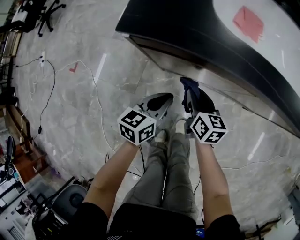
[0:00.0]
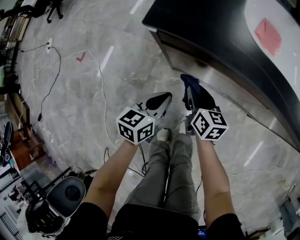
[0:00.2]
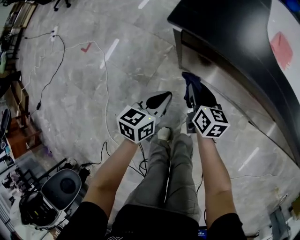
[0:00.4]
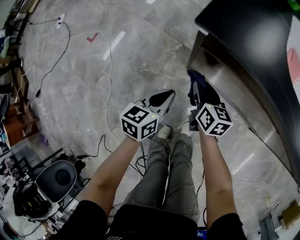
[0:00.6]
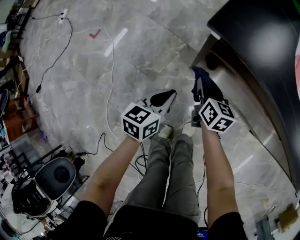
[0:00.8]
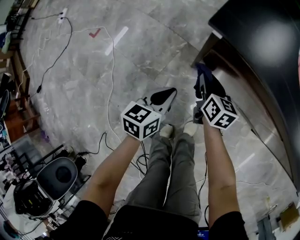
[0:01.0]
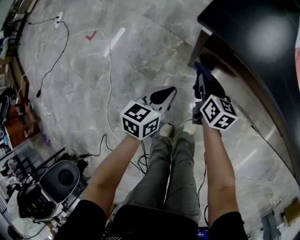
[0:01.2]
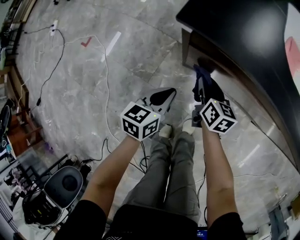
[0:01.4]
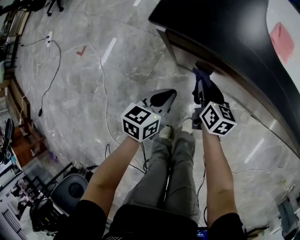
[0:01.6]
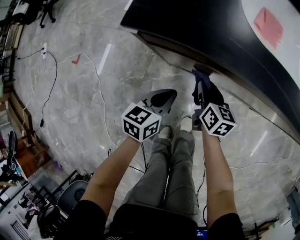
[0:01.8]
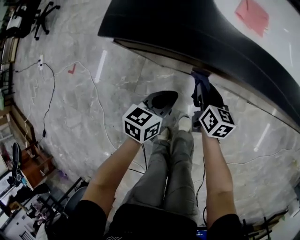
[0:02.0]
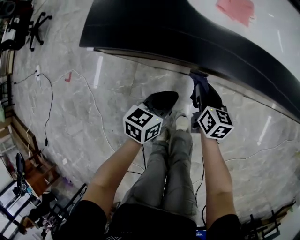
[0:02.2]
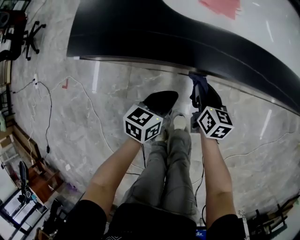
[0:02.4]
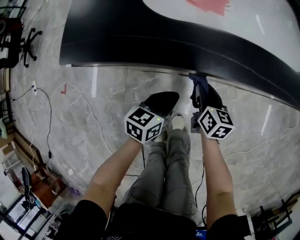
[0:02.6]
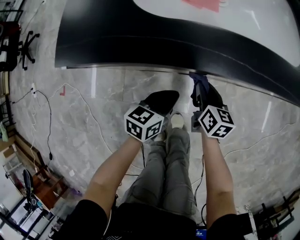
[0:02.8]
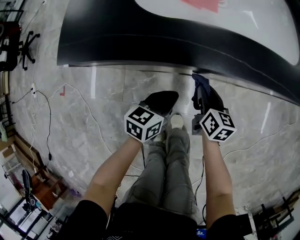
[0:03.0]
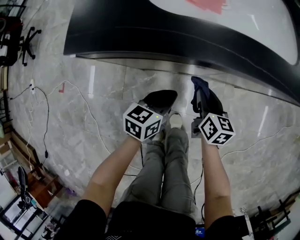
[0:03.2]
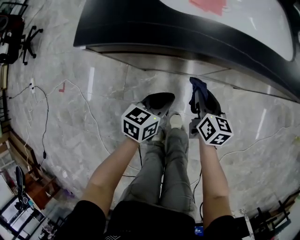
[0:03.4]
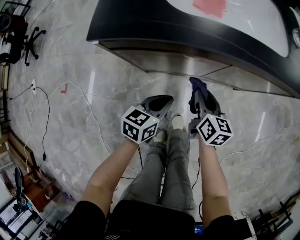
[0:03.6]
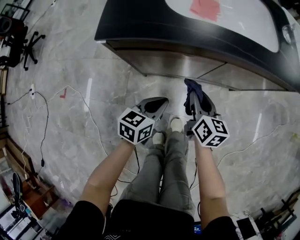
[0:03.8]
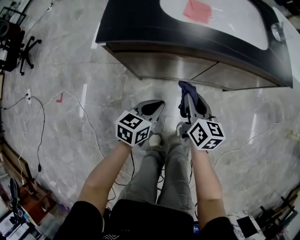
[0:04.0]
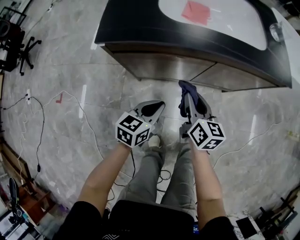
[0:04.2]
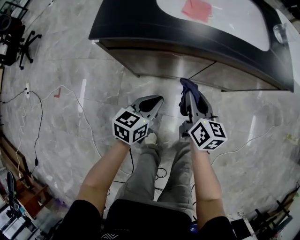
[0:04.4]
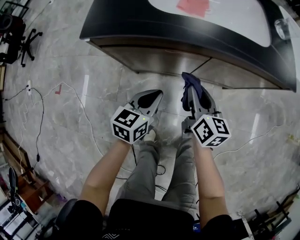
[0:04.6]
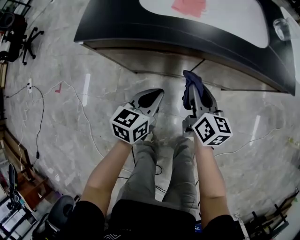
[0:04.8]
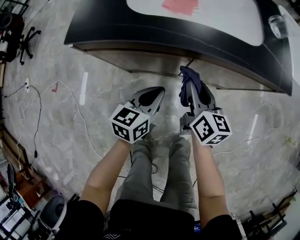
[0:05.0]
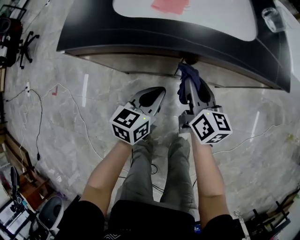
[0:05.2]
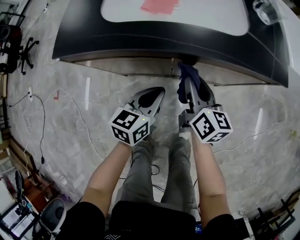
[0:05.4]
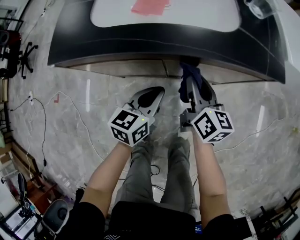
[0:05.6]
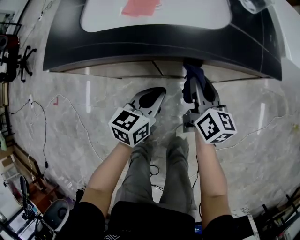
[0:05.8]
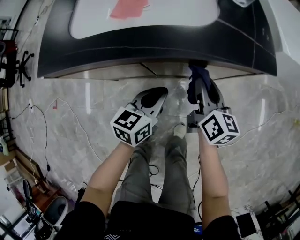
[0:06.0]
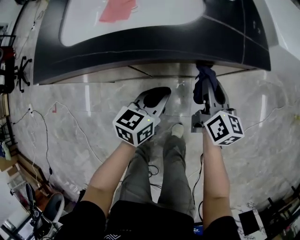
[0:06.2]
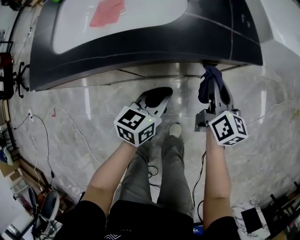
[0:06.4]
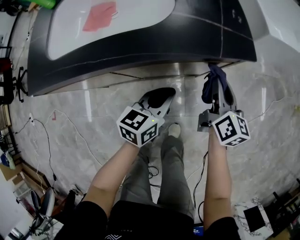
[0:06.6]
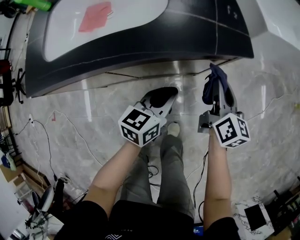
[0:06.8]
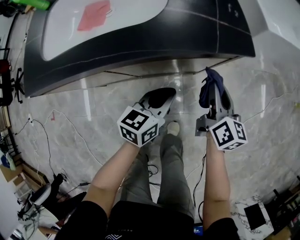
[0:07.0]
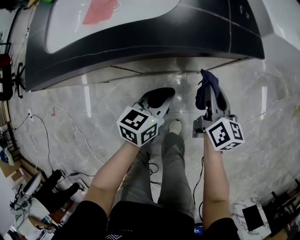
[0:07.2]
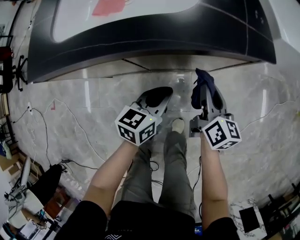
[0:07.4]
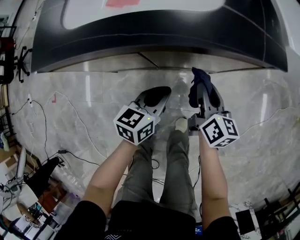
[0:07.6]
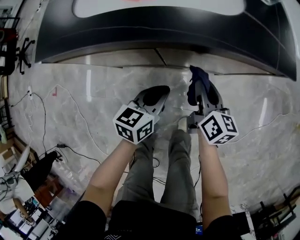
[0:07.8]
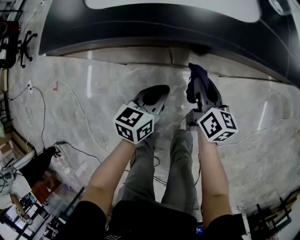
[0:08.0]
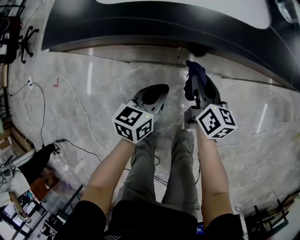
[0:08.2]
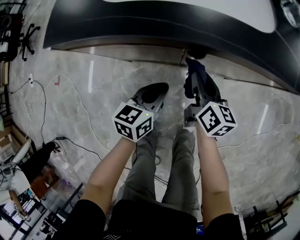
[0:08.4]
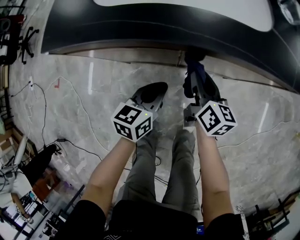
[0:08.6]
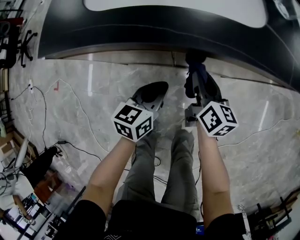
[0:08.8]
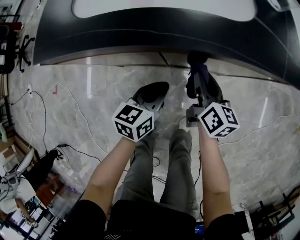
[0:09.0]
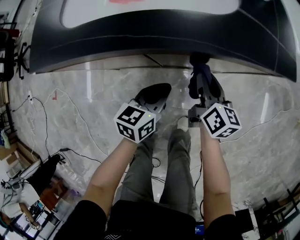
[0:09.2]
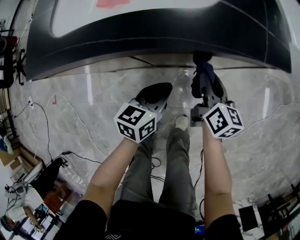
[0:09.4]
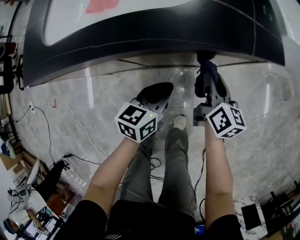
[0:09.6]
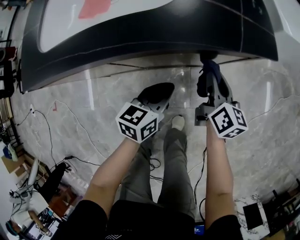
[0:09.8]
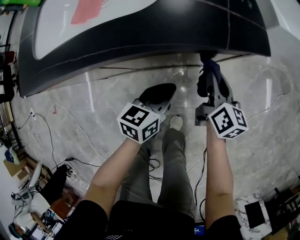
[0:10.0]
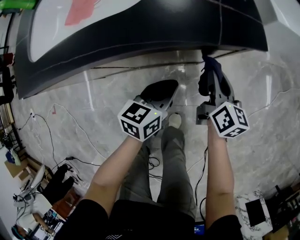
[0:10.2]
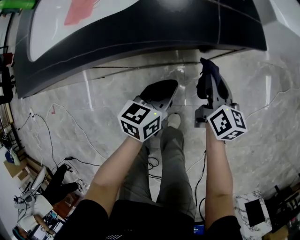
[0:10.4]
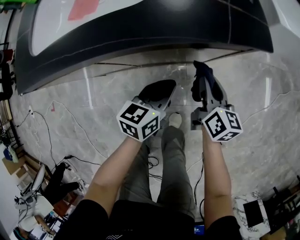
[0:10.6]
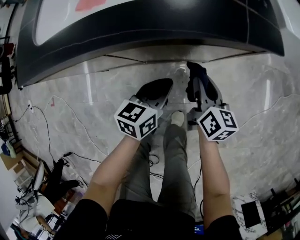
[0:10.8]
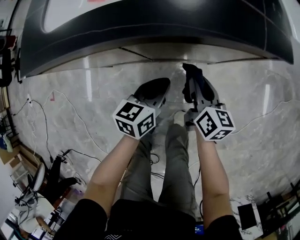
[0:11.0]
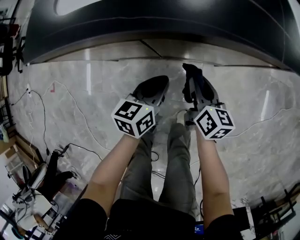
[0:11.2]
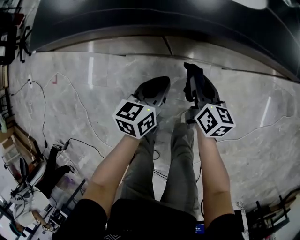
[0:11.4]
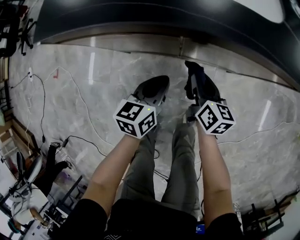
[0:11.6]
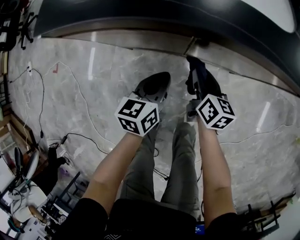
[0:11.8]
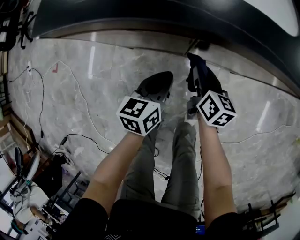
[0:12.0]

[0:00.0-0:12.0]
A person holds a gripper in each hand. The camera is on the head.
0:00.0 to 0:01.6: Both grippers travel together to the left, some 5 cm.
0:01.6 to 0:03.0: The grippers both shift to the right by approximately 20 cm. The left gripper swivels about 20 degrees; the right gripper turns by approximately 20 degrees.
0:03.0 to 0:04.4: The right gripper shifts roughly 15 cm upward and backward. The left gripper travels backward and upward by some 10 cm.
0:04.4 to 0:06.0: Both grippers travel together to the right and forward, roughly 25 cm.
0:06.0 to 0:07.6: The right gripper travels downward by roughly 5 cm, and moves some 15 cm to the right and comes back. Meanwhile the left gripper goes to the right and returns, approximately 10 cm each way.
0:07.6 to 0:09.0: Both grippers travel together to the left, some 5 cm.
0:09.0 to 0:10.4: The grippers both shift to the right by roughly 20 cm.
0:10.4 to 0:12.0: The left gripper shifts by roughly 25 cm, and rotates about 30 degrees; the right gripper moves roughly 30 cm, and changes its angle by roughly 20 degrees.

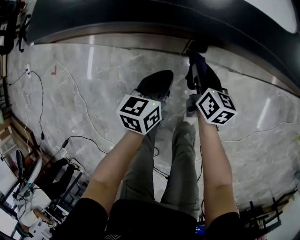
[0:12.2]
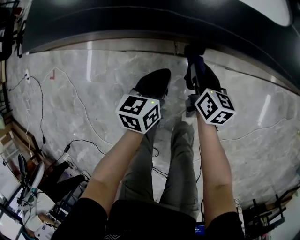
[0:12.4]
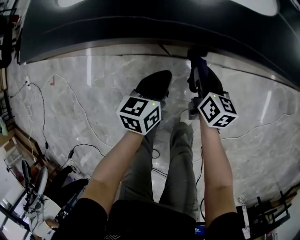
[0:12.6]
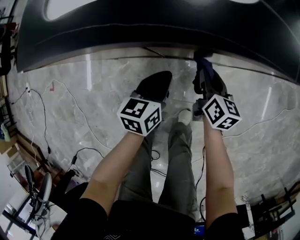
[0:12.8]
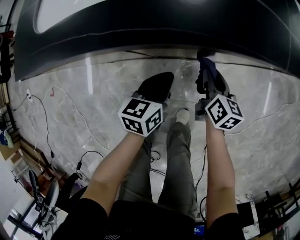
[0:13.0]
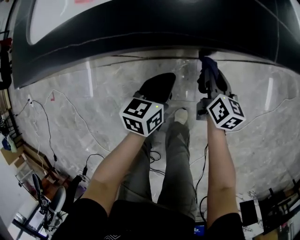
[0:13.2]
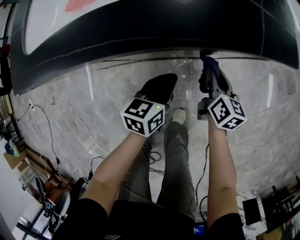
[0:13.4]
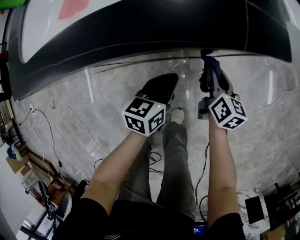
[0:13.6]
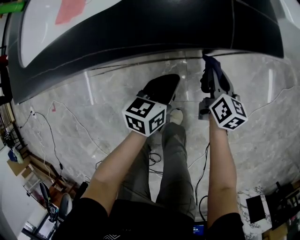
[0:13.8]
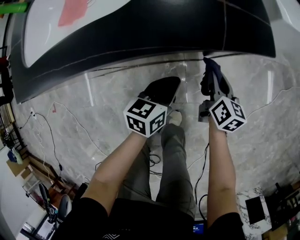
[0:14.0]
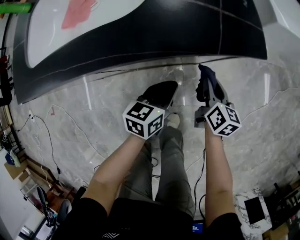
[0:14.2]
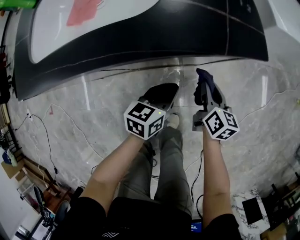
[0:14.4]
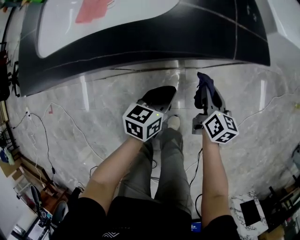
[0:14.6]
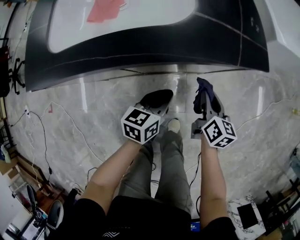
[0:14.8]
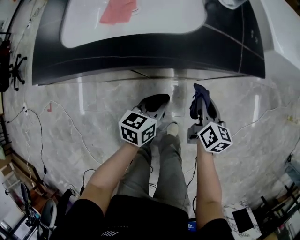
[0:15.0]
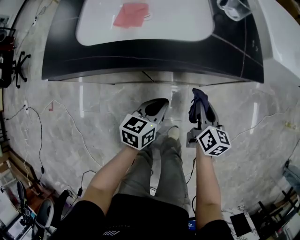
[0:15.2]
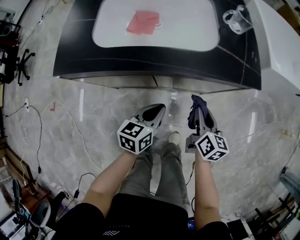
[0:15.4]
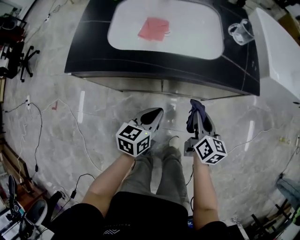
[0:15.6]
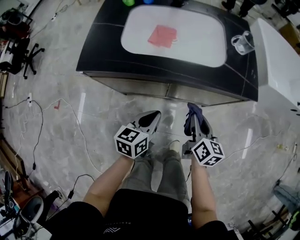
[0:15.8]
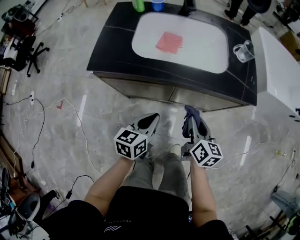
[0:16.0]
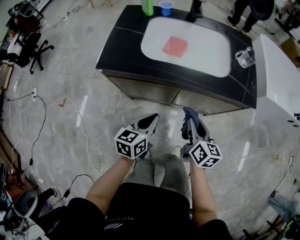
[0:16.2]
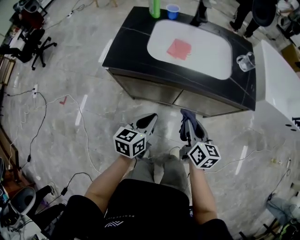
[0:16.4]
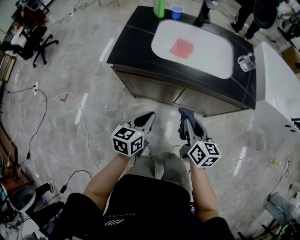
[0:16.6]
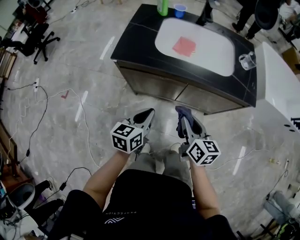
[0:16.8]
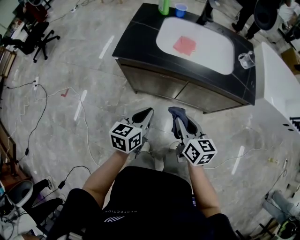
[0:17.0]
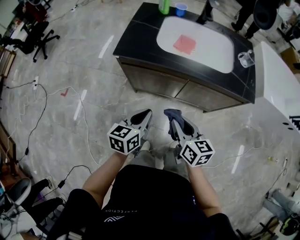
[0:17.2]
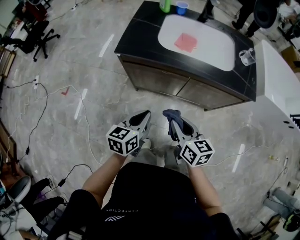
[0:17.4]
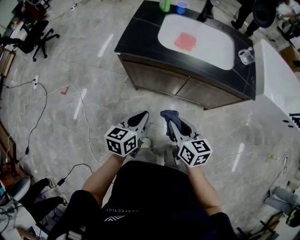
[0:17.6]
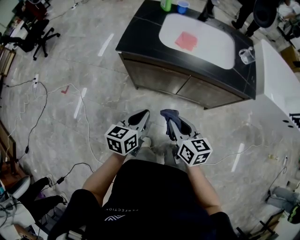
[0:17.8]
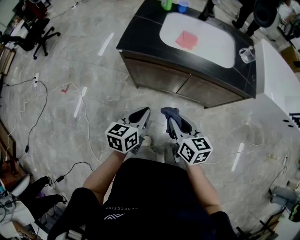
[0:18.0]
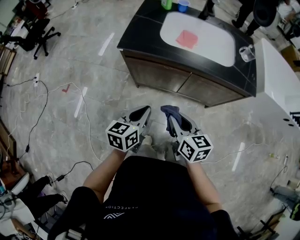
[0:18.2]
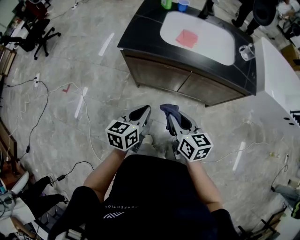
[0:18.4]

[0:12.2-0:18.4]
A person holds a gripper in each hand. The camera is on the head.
0:12.2 to 0:13.8: The two grippers go approximately 25 cm to the right. The left gripper swivels about 20 degrees; the right gripper changes its angle by some 20 degrees.
0:13.8 to 0:15.4: The left gripper shifts approximately 20 cm to the left, upward and backward. Meanwhile the right gripper travels upward, to the left and backward by some 25 cm.
0:15.4 to 0:16.8: Both grippers move to the left, upward and backward, some 25 cm. The right gripper changes its angle by roughly 20 degrees.
0:16.8 to 0:18.4: The left gripper goes about 5 cm backward. Meanwhile the right gripper travels to the left and backward by some 10 cm.

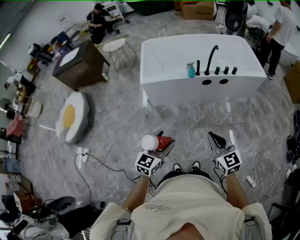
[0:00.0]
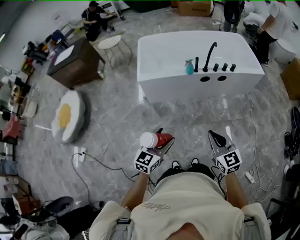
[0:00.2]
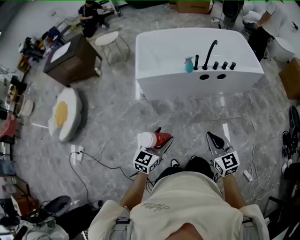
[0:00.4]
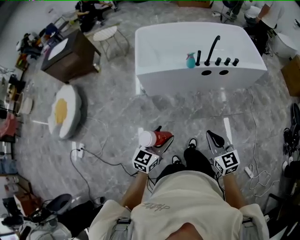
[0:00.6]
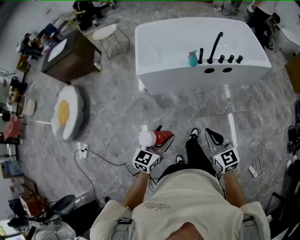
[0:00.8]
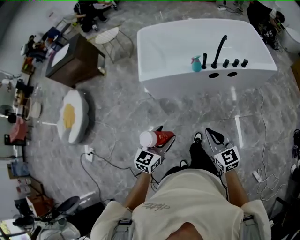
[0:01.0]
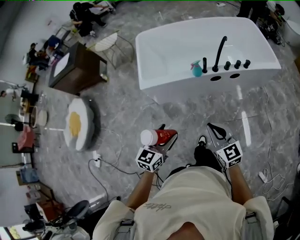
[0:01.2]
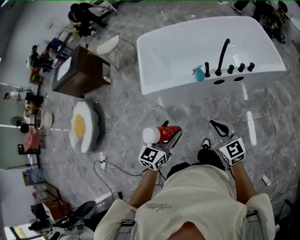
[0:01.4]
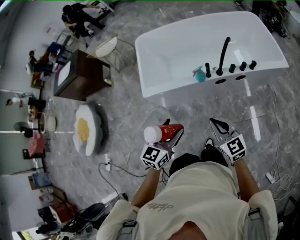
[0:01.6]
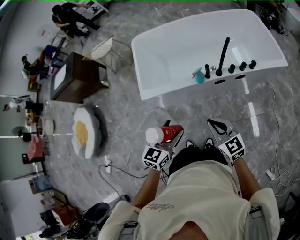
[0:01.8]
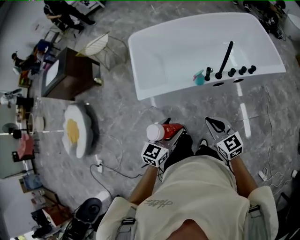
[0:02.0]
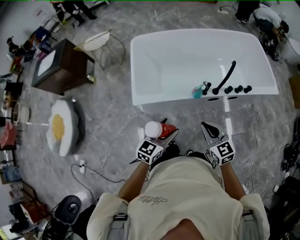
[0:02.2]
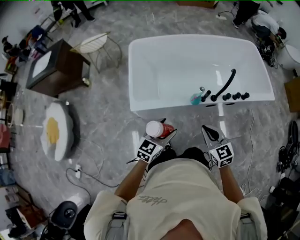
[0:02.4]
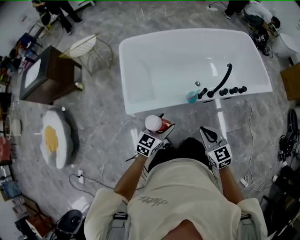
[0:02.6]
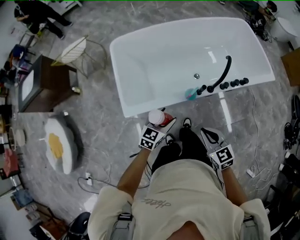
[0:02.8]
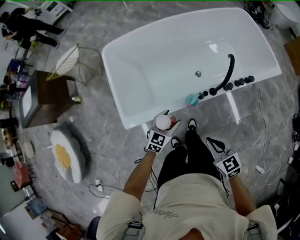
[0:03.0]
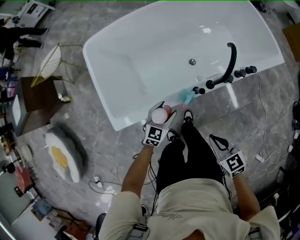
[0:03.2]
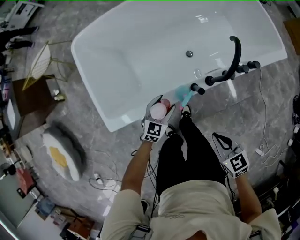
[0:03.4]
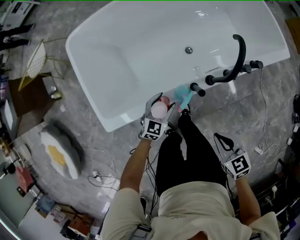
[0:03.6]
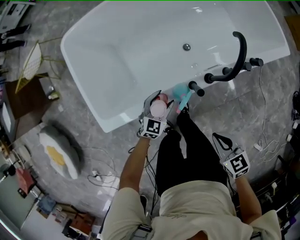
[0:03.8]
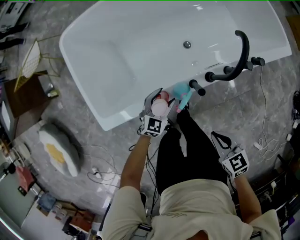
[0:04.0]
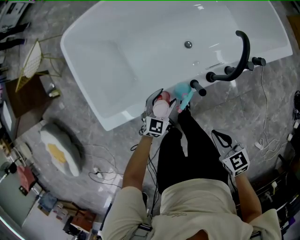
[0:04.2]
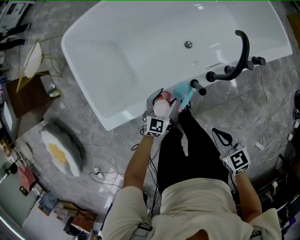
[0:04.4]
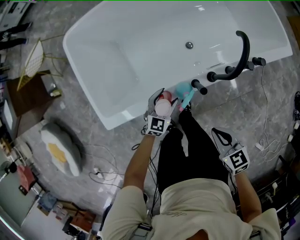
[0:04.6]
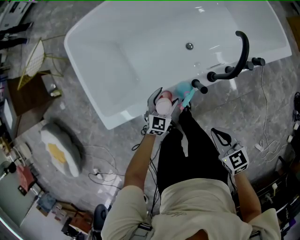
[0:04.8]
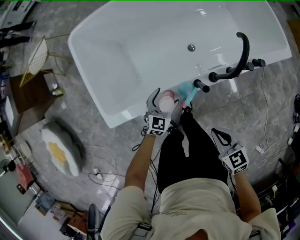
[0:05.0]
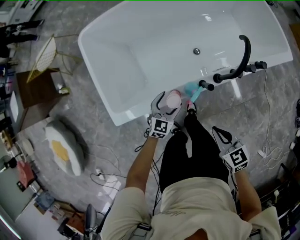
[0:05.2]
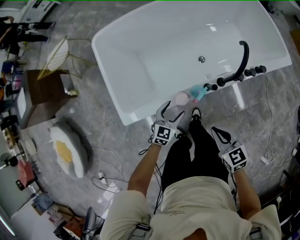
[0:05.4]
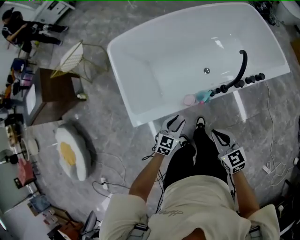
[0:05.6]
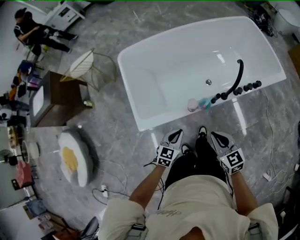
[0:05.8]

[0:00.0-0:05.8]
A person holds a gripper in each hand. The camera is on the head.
0:00.0 to 0:01.4: The grippers both shift forward by roughly 25 cm.
0:01.4 to 0:02.8: The left gripper travels forward and downward by about 30 cm. The right gripper moves forward, approximately 15 cm.
0:02.8 to 0:04.4: The left gripper travels downward, forward and to the right by some 25 cm. Meanwhile the right gripper moves downward and to the right, roughly 15 cm.
0:04.4 to 0:05.8: The right gripper heads to the left and upward, covering about 15 cm. The left gripper moves upward, backward and to the left, about 20 cm, and closes.
